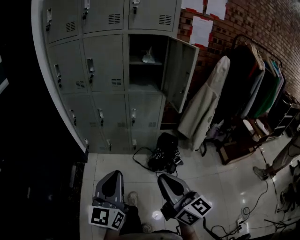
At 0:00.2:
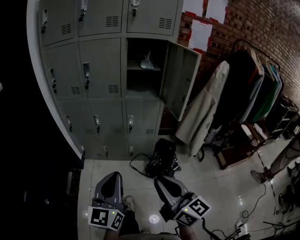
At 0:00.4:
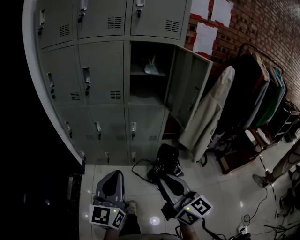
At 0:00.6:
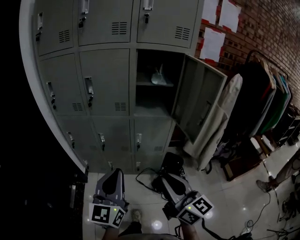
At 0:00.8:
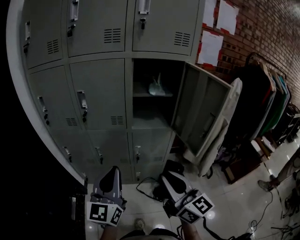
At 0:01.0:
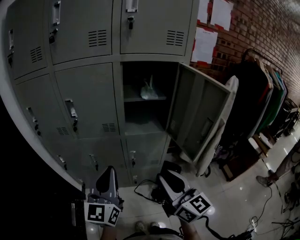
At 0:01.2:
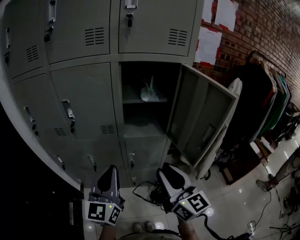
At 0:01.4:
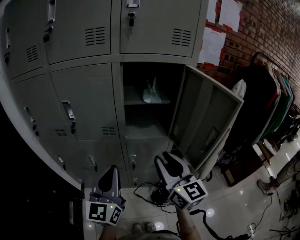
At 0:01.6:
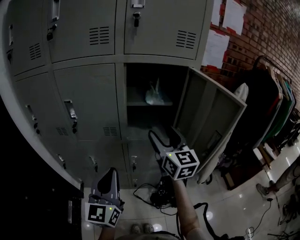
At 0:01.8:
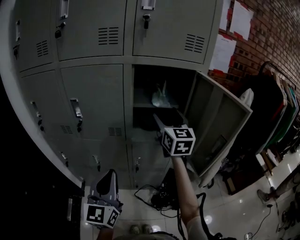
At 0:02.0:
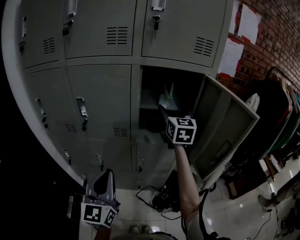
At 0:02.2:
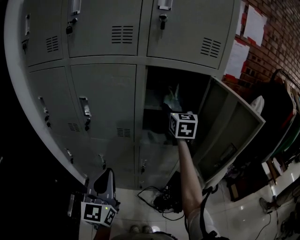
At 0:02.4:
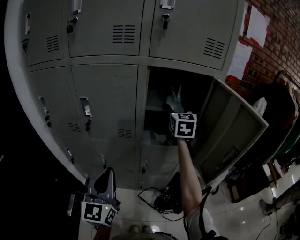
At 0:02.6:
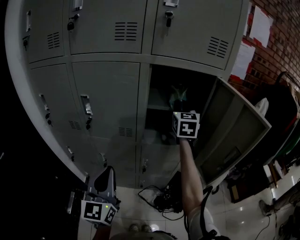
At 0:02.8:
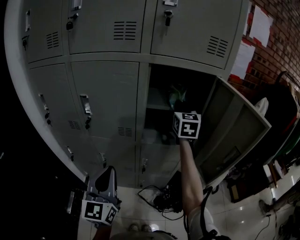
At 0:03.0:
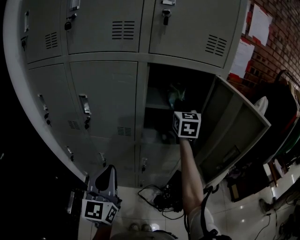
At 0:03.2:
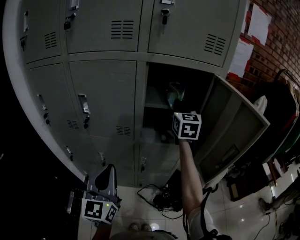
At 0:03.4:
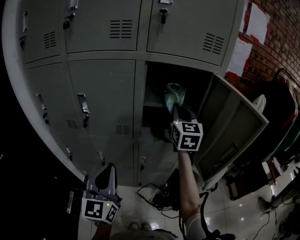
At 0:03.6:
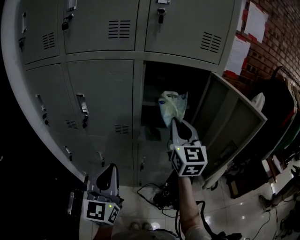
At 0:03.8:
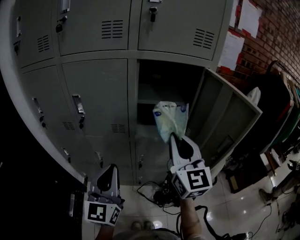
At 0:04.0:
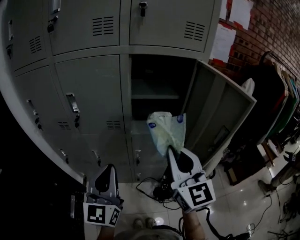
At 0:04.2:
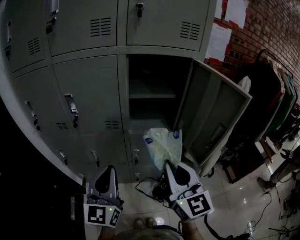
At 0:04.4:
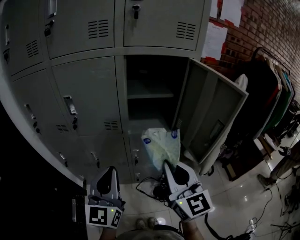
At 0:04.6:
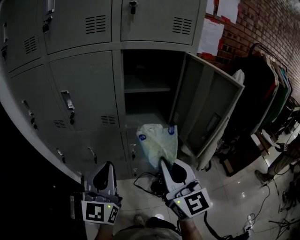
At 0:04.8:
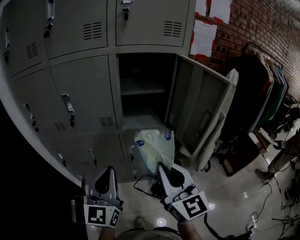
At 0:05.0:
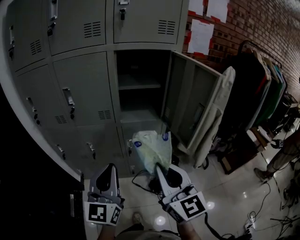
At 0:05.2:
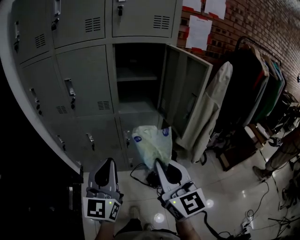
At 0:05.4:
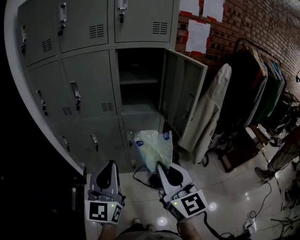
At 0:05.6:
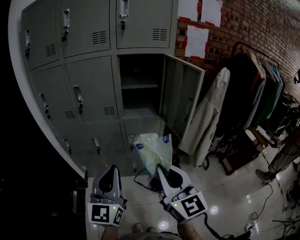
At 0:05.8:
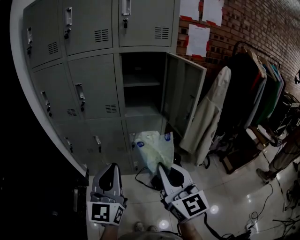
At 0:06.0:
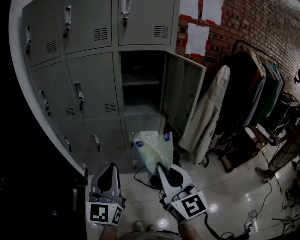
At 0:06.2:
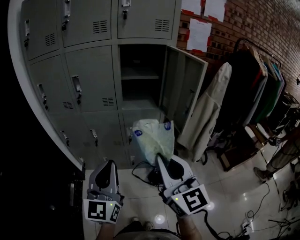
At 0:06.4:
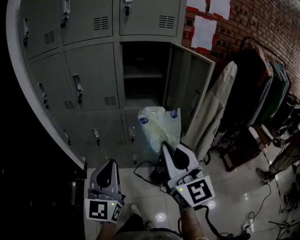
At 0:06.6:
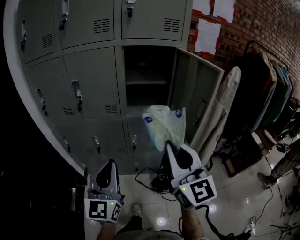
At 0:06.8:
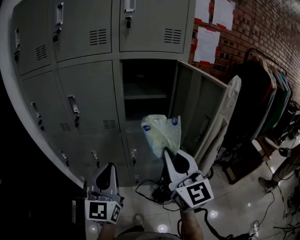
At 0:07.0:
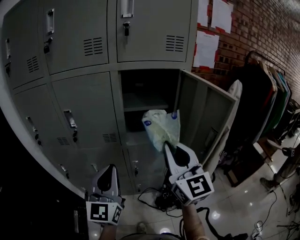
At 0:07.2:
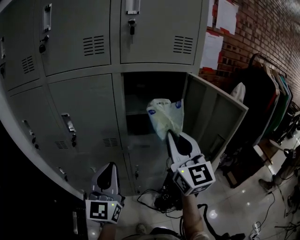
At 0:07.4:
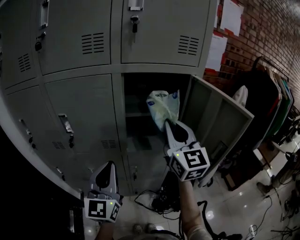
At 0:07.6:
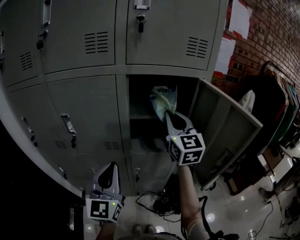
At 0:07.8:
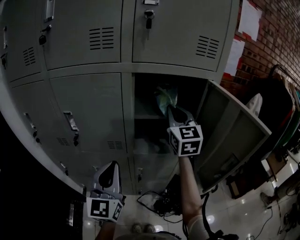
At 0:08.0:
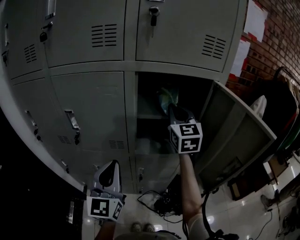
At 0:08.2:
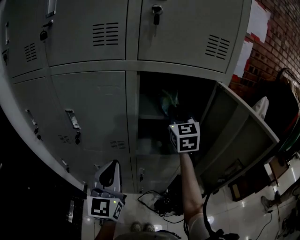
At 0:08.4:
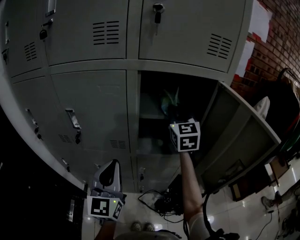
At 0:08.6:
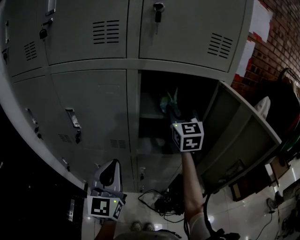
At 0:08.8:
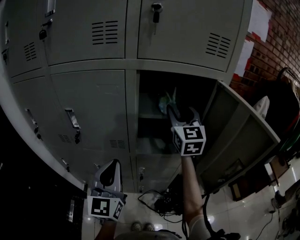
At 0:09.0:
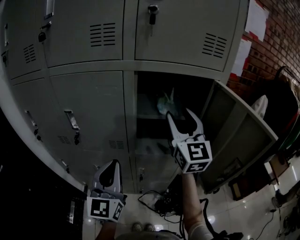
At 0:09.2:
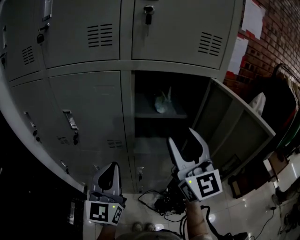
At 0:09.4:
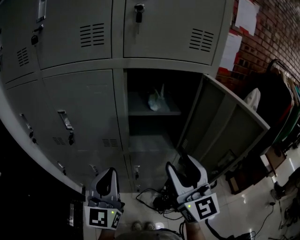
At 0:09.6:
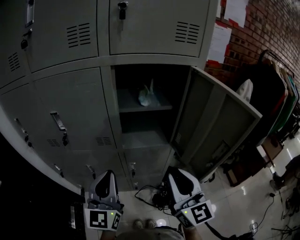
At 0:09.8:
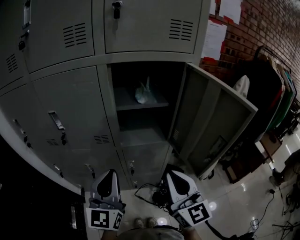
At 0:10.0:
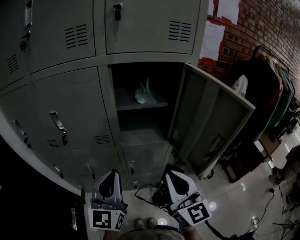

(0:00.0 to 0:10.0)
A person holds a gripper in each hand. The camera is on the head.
0:00.0 - 0:01.4: The two grippers go about 40 cm forward.
0:01.4 - 0:02.8: The right gripper moves forward, about 30 cm, turns by roughly 30 degrees, and opens and closes again. Meanwhile the left gripper moves to the left, approximately 5 cm.
0:02.8 - 0:04.2: The right gripper is displaced backward by some 35 cm.
0:04.2 - 0:05.8: The grippers both shift backward by about 20 cm.
0:05.8 - 0:07.2: The grippers both shift forward by roughly 30 cm.
0:07.2 - 0:08.6: The left gripper travels forward by approximately 5 cm. The right gripper goes approximately 25 cm forward, and opens up.
0:08.6 - 0:10.0: The right gripper moves backward, roughly 30 cm, and closes its fingers; the left gripper goes approximately 5 cm backward.

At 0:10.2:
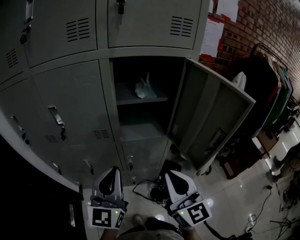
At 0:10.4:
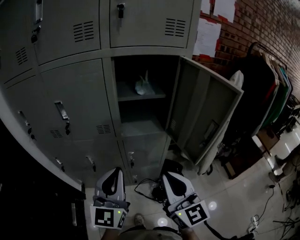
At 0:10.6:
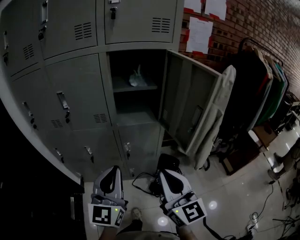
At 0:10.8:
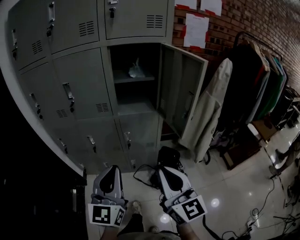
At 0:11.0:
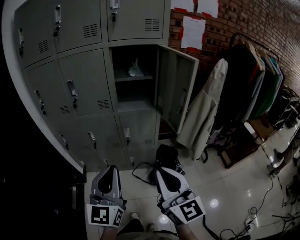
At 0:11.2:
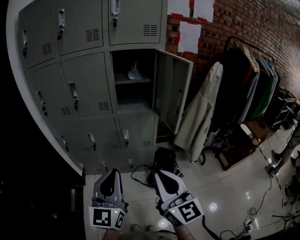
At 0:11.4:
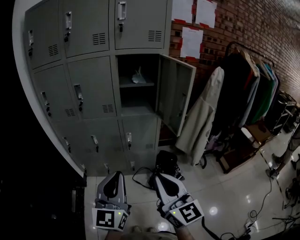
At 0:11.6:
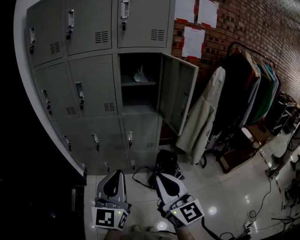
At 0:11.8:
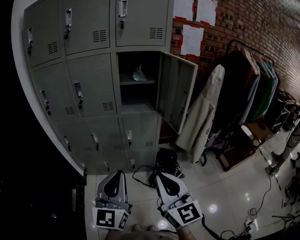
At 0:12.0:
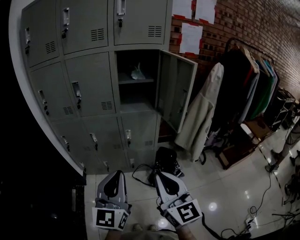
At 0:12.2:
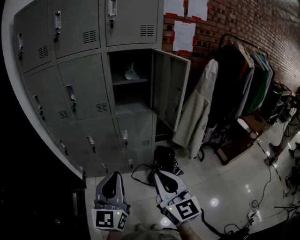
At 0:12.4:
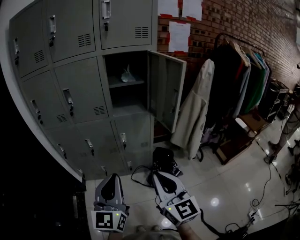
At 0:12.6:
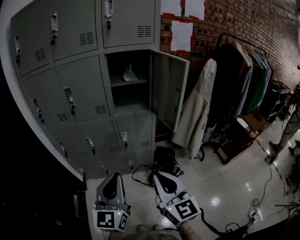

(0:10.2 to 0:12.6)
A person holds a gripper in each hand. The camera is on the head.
0:10.2 - 0:11.4: The two grippers go approximately 30 cm backward.
0:11.4 - 0:12.6: There are only small adjustments of the grippers.

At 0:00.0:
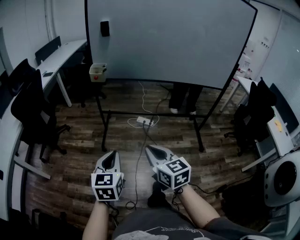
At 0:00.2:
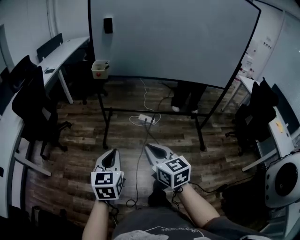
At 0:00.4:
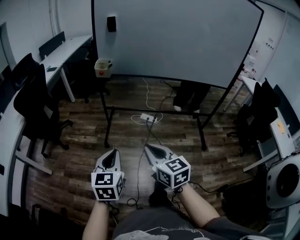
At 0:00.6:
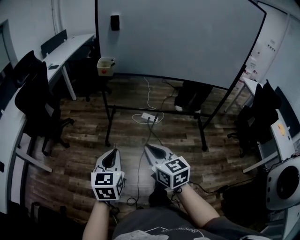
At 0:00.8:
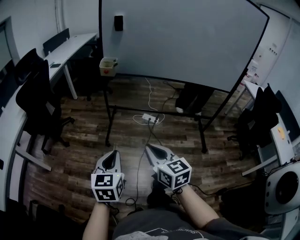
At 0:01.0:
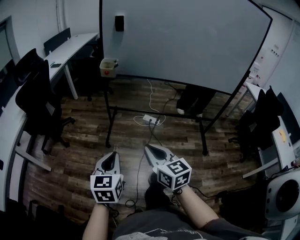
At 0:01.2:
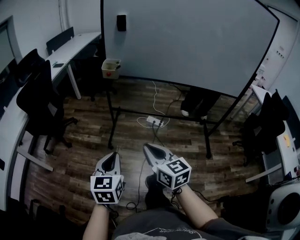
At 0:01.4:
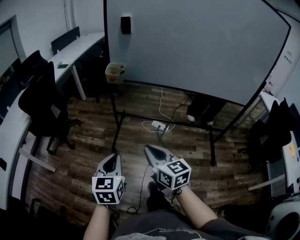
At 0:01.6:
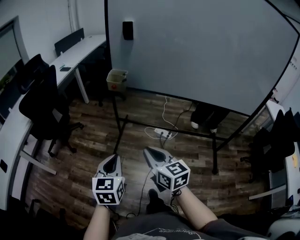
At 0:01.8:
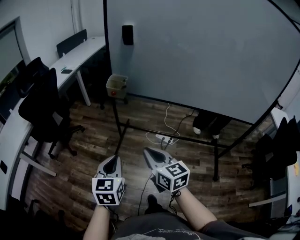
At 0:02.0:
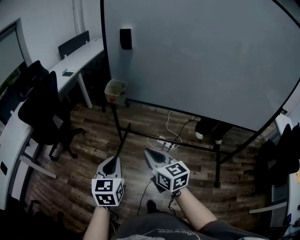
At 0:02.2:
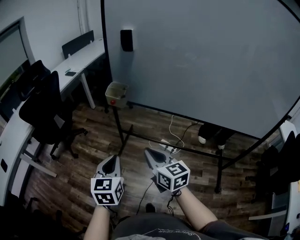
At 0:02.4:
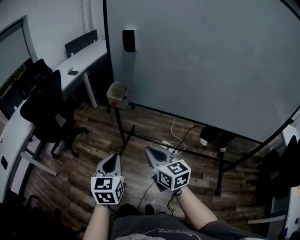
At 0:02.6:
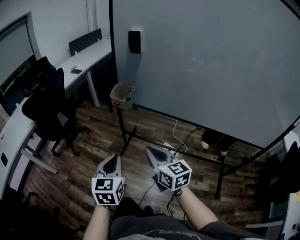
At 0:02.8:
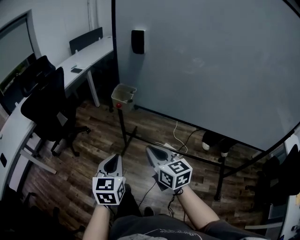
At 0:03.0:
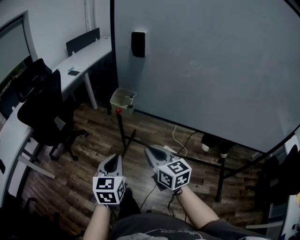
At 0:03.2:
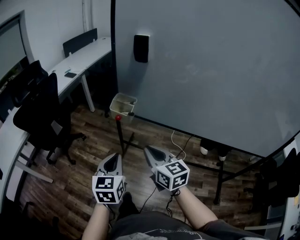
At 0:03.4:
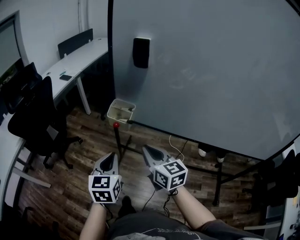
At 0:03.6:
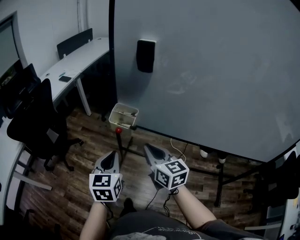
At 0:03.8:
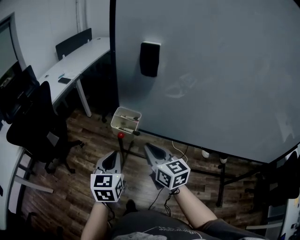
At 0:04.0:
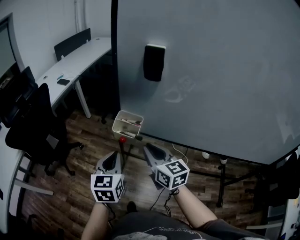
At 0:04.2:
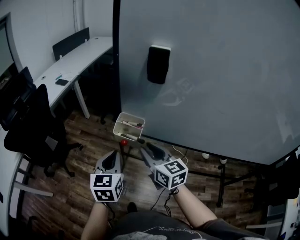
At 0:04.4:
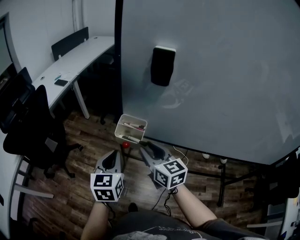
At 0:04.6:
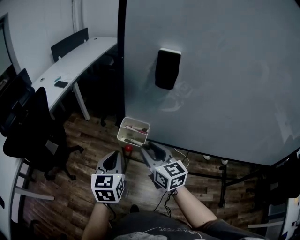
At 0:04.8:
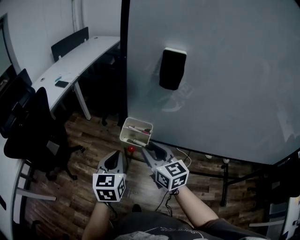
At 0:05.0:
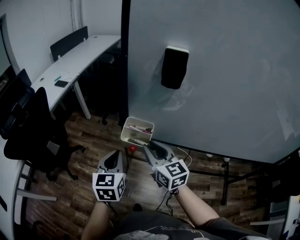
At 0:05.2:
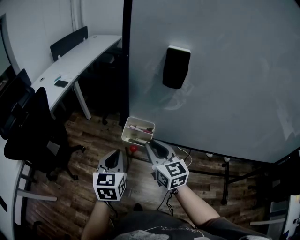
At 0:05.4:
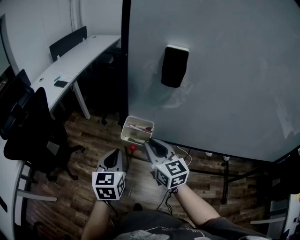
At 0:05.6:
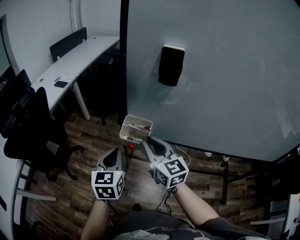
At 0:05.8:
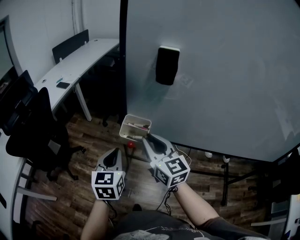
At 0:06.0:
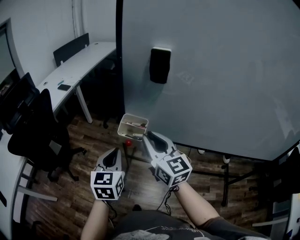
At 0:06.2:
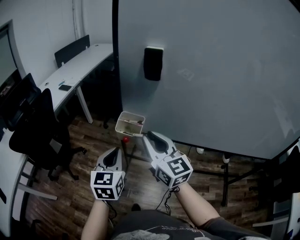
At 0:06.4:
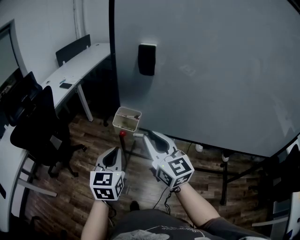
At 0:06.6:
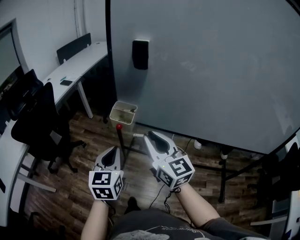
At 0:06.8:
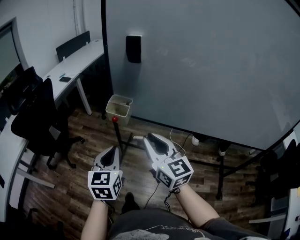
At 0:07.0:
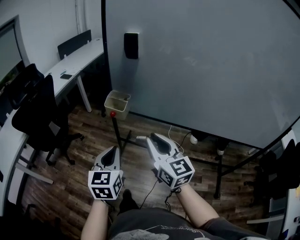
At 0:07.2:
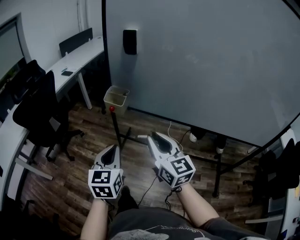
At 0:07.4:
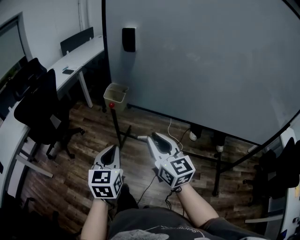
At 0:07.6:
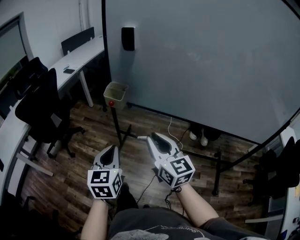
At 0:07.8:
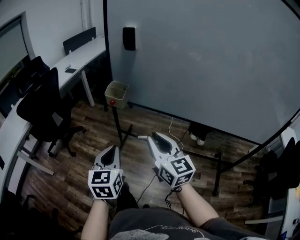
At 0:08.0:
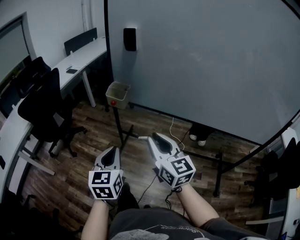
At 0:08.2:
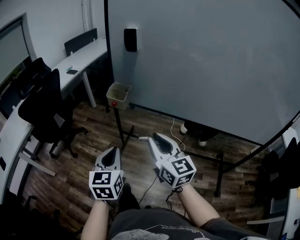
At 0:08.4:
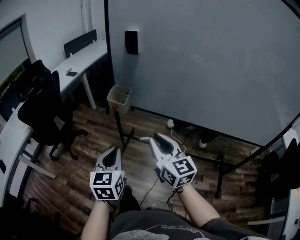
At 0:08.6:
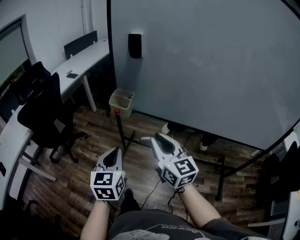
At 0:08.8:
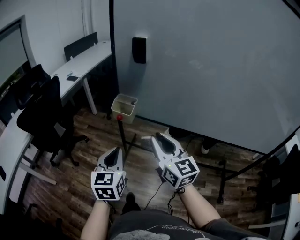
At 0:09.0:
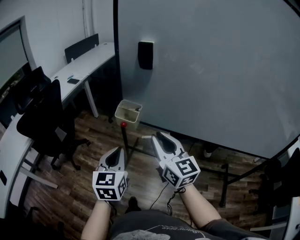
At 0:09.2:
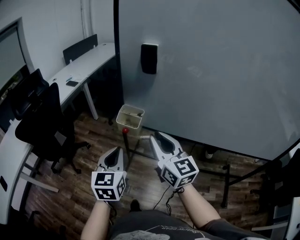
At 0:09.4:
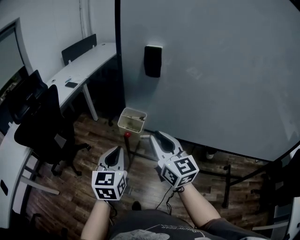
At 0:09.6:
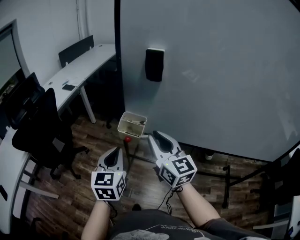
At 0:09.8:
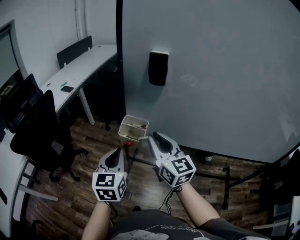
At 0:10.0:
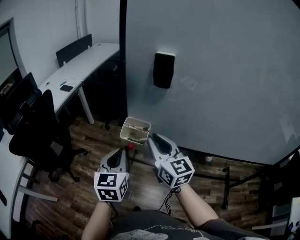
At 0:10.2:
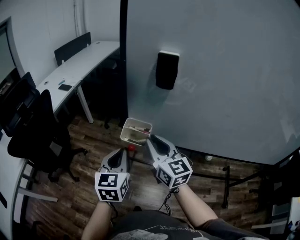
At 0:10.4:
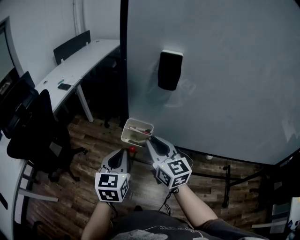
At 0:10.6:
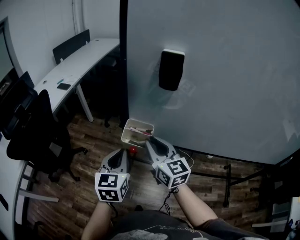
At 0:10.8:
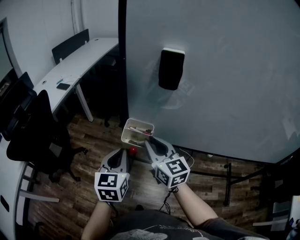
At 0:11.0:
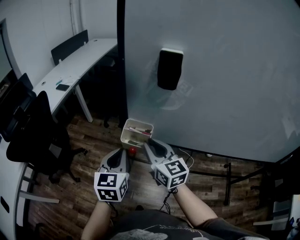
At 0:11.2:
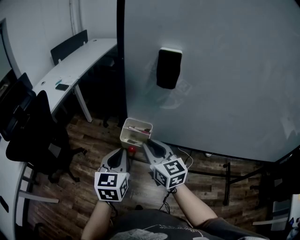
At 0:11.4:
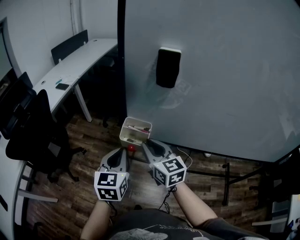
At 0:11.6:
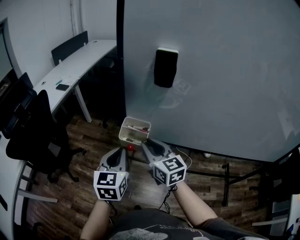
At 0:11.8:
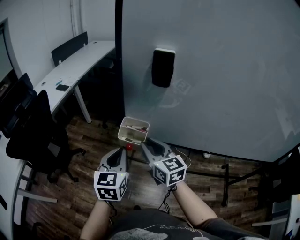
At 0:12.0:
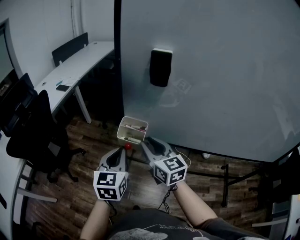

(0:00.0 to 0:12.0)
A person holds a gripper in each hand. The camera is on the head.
0:00.0 - 0:01.6: Both grippers travel together forward, some 15 cm.
0:01.6 - 0:03.0: Both grippers move forward, some 20 cm.
0:03.0 - 0:04.4: Both grippers move forward, some 20 cm. The right gripper opens its fingers.
0:04.4 - 0:06.0: The right gripper shifts some 10 cm upward.
0:06.0 - 0:07.6: Both grippers travel together backward, about 25 cm.
0:07.6 - 0:09.0: The grippers both shift forward by some 10 cm.
0:09.0 - 0:10.4: Both grippers move forward, roughly 15 cm.
0:10.4 - 0:12.0: There are only small adjustments of the grippers.
